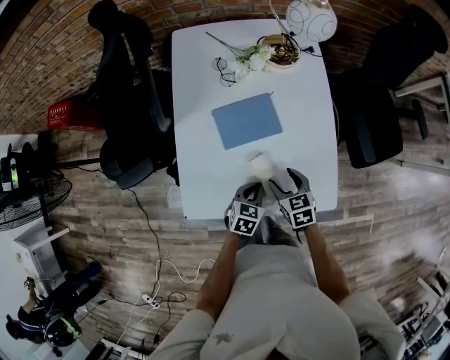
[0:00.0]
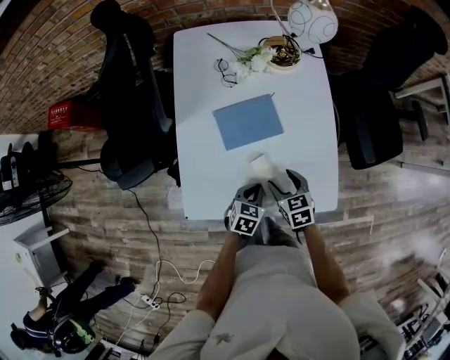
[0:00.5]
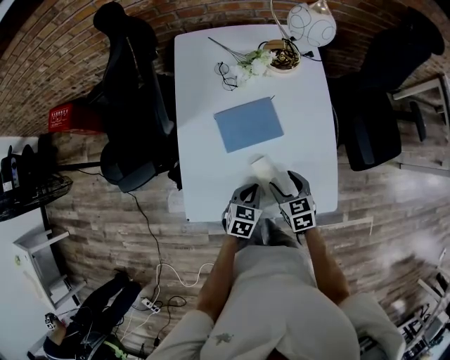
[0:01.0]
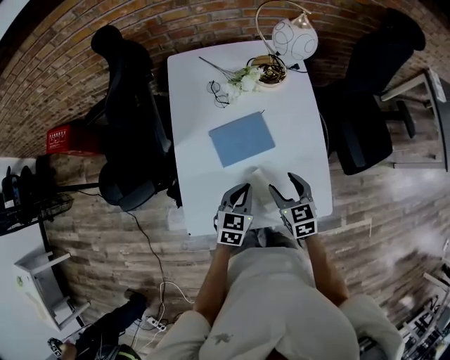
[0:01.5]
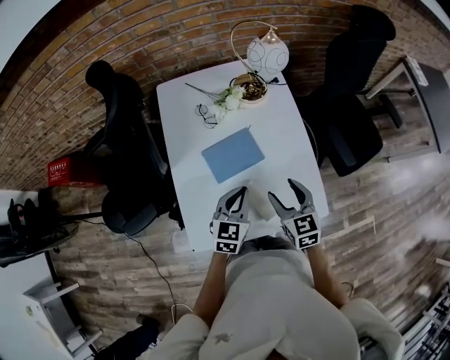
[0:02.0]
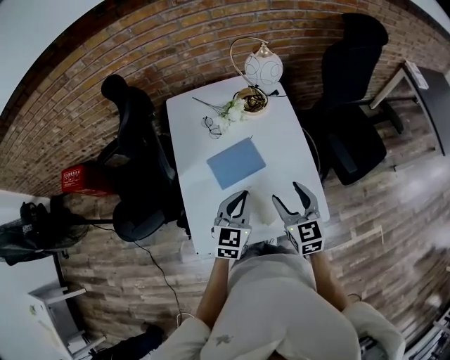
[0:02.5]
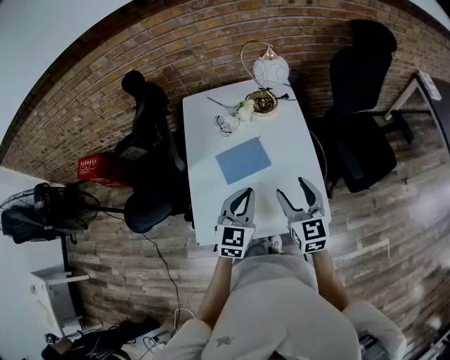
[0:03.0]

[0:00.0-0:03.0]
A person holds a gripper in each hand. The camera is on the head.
0:00.0 to 0:01.5: The grippers both shift upward by some 10 cm.
0:01.5 to 0:03.0: Both grippers move upward, about 15 cm. The right gripper swivels approximately 20 degrees. Meanwhile the left gripper swivels about 20 degrees.

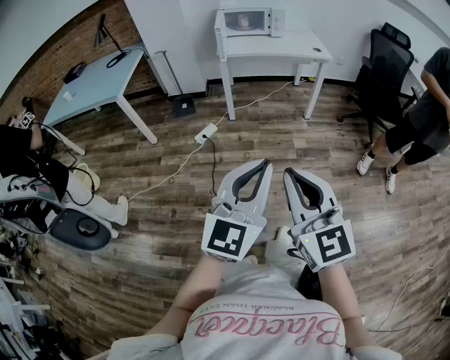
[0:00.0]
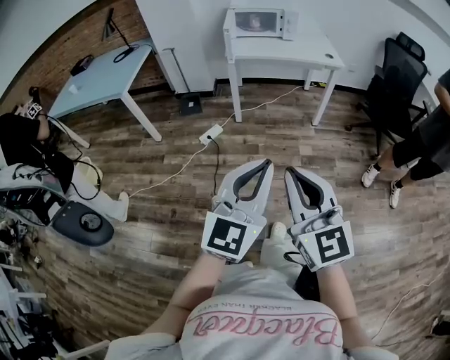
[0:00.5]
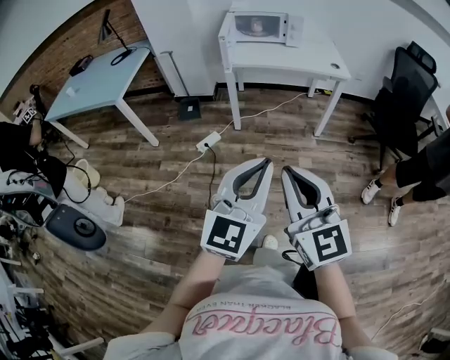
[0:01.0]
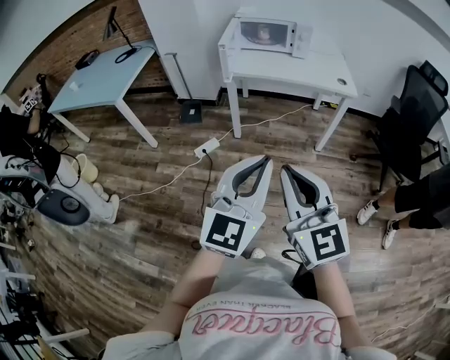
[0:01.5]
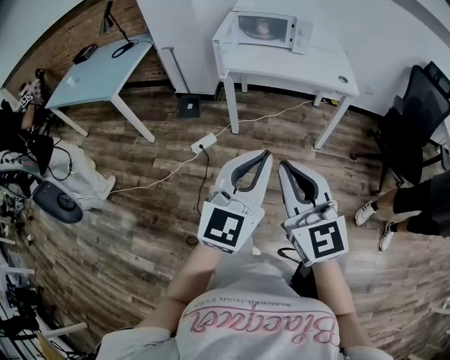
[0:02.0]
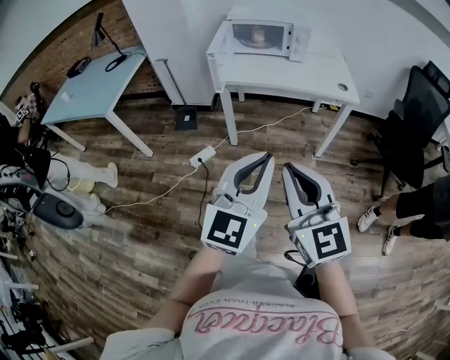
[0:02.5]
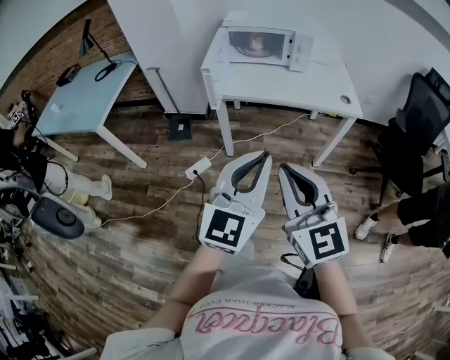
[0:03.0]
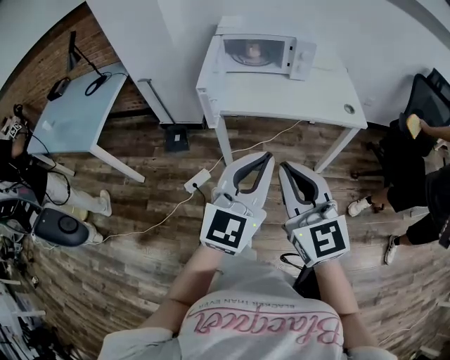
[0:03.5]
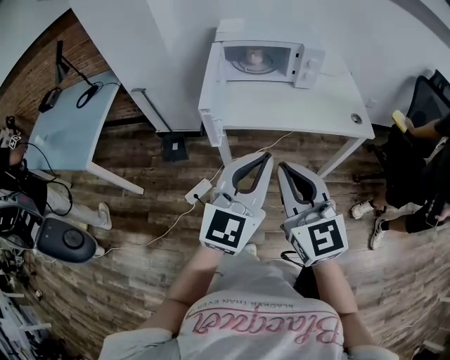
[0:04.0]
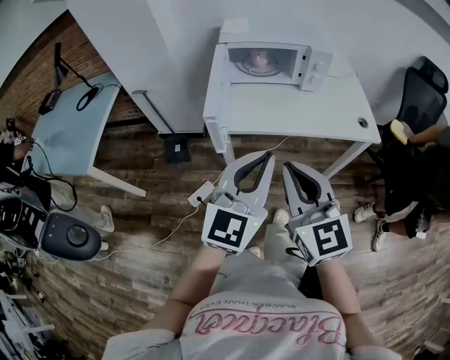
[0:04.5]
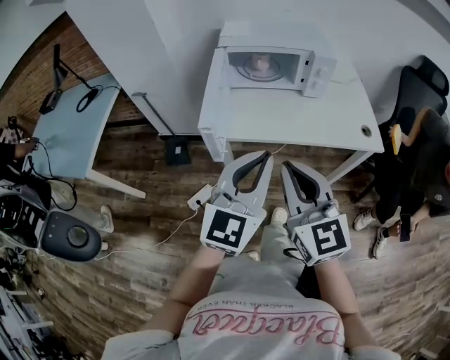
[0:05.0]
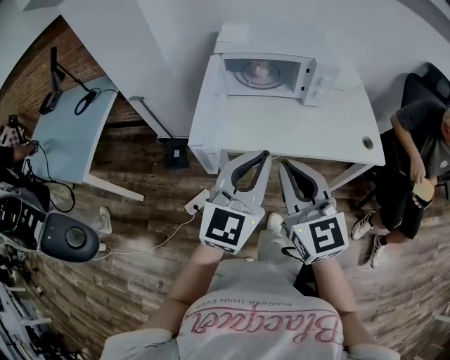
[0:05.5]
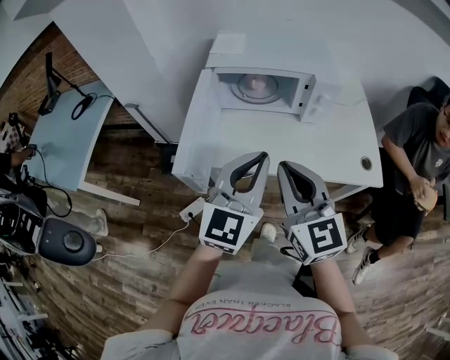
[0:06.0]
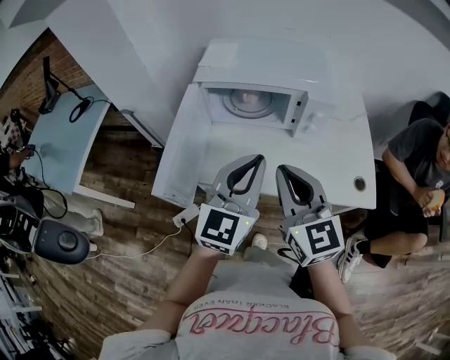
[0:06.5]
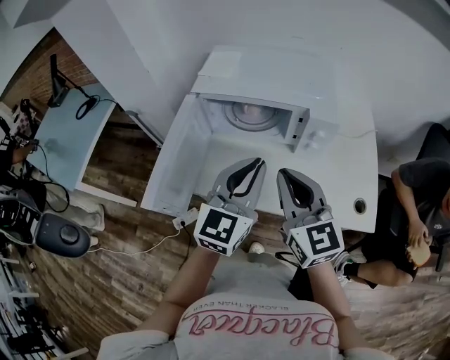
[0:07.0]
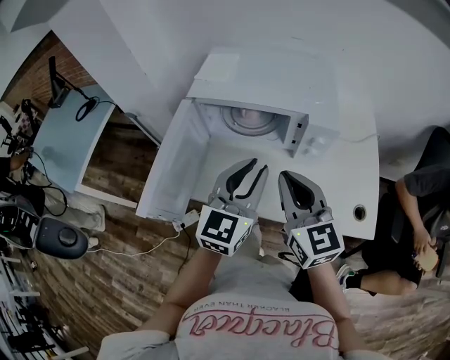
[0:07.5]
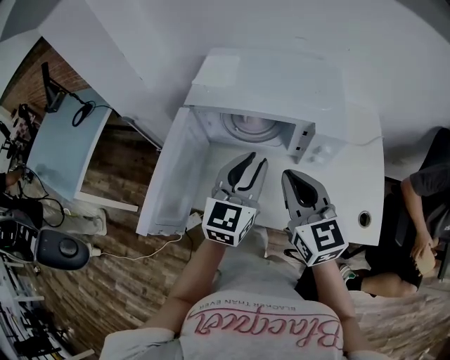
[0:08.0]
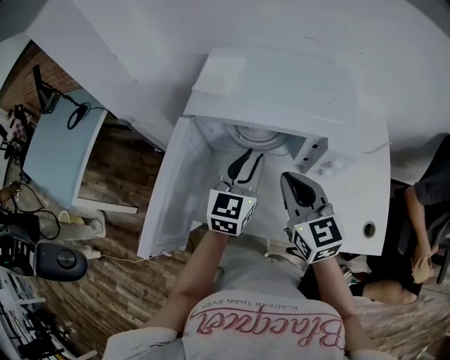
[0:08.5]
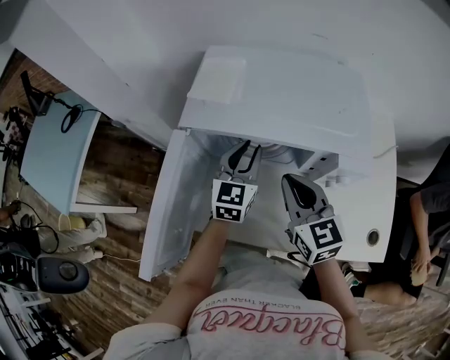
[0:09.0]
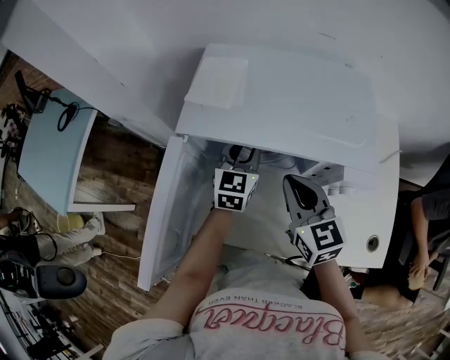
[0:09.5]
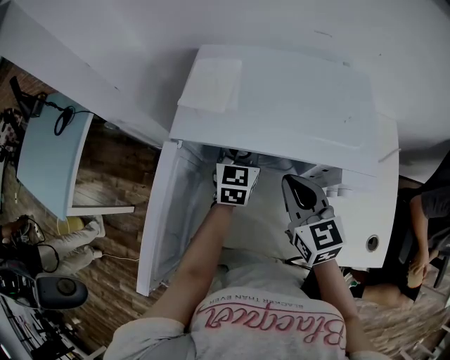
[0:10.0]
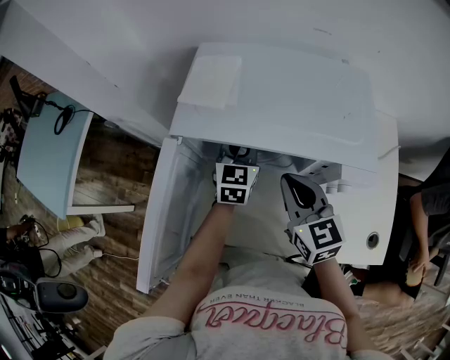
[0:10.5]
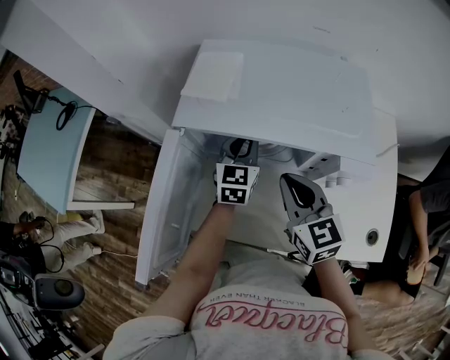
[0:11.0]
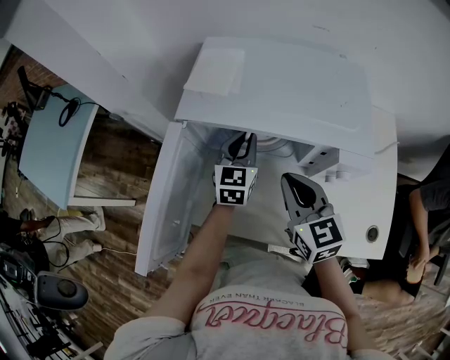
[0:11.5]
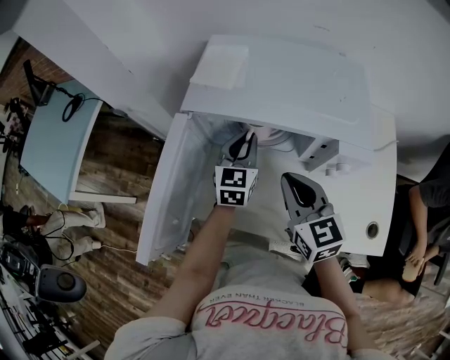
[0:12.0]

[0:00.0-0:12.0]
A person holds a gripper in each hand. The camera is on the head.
0:00.0 to 0:02.0: Both grippers travel together forward and to the right, some 30 cm.
0:02.0 to 0:04.0: Both grippers move forward, some 35 cm.
0:04.0 to 0:06.0: Both grippers move forward, some 20 cm.
0:06.0 to 0:08.0: The right gripper goes about 20 cm forward and to the right. The left gripper goes some 20 cm forward.
0:08.0 to 0:10.0: The left gripper moves forward and downward, approximately 25 cm. The right gripper shifts about 15 cm forward and downward.
0:10.0 to 0:12.0: Both grippers move backward, roughly 5 cm.

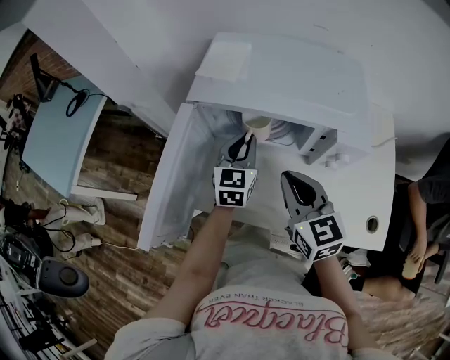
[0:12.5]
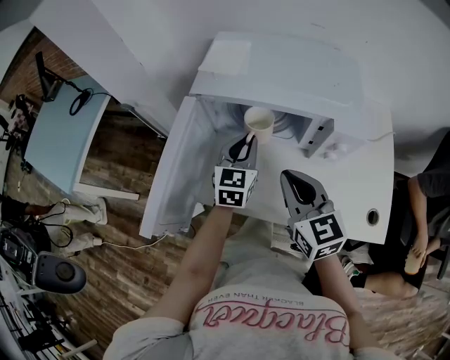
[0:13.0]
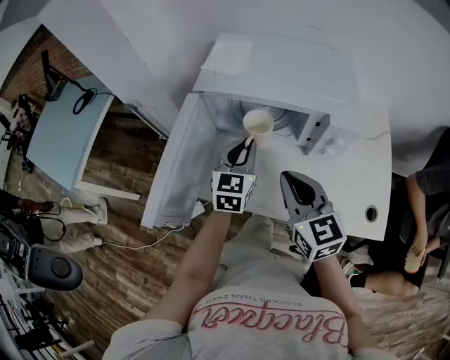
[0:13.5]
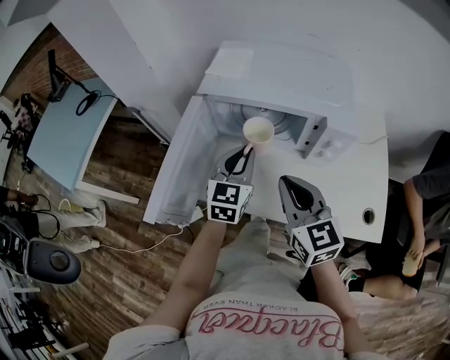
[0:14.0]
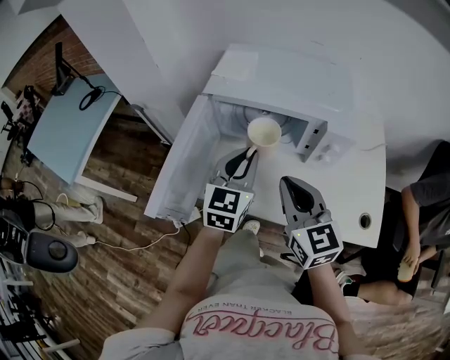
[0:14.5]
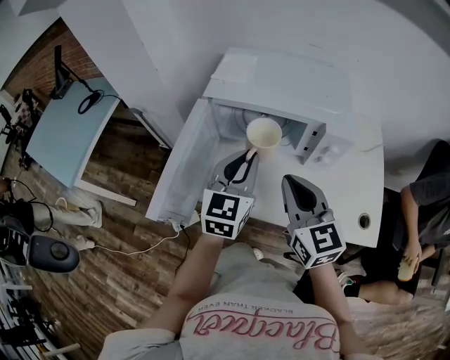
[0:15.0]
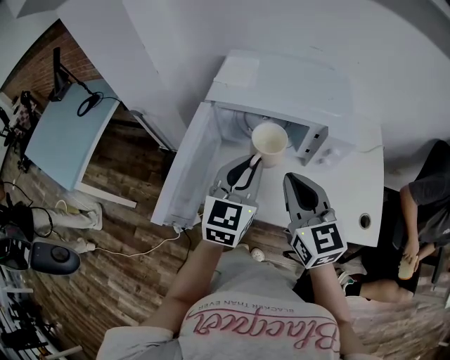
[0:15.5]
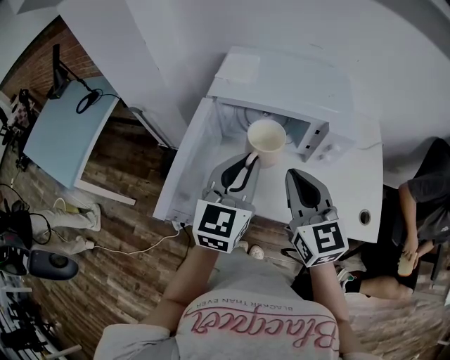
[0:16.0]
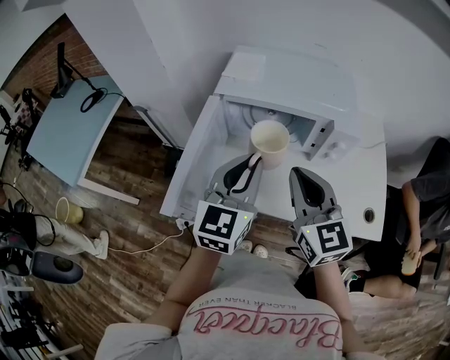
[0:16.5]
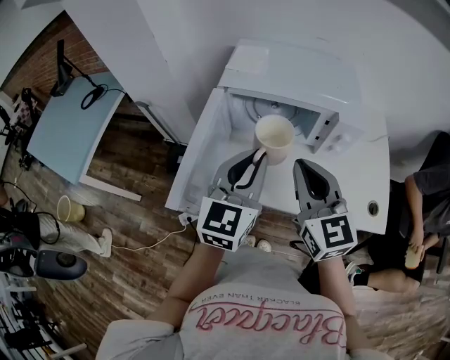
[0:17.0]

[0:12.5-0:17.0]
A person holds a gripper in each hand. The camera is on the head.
0:12.5 to 0:14.5: The right gripper shifts about 10 cm backward; the left gripper goes some 15 cm backward and upward.
0:14.5 to 0:17.0: The right gripper heads upward, covering about 5 cm; the left gripper heads upward and backward, covering about 10 cm.

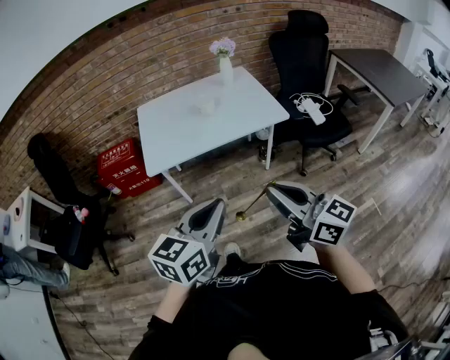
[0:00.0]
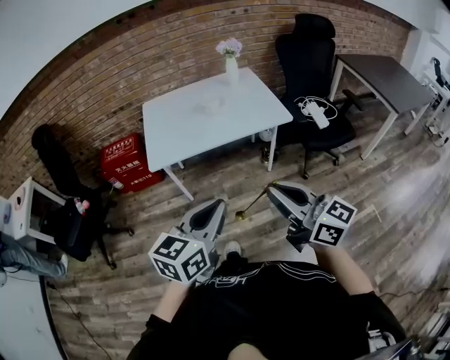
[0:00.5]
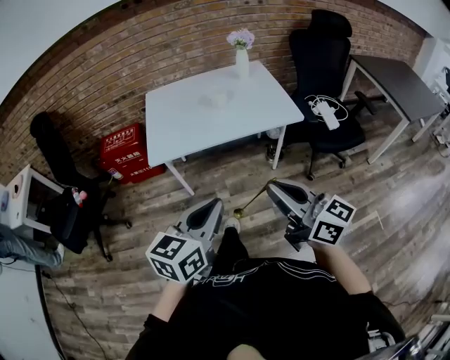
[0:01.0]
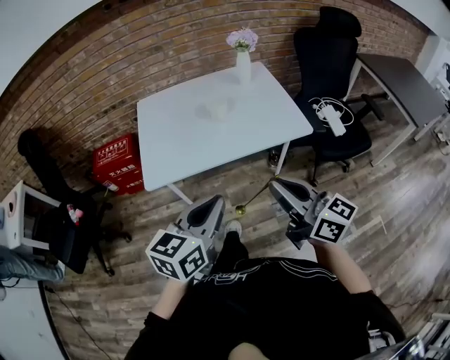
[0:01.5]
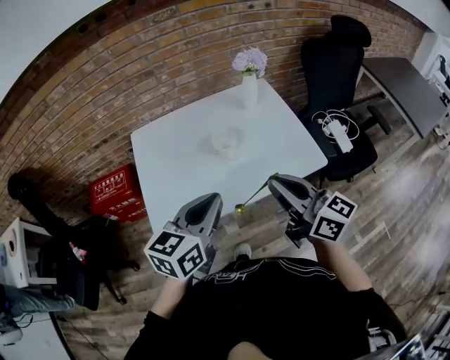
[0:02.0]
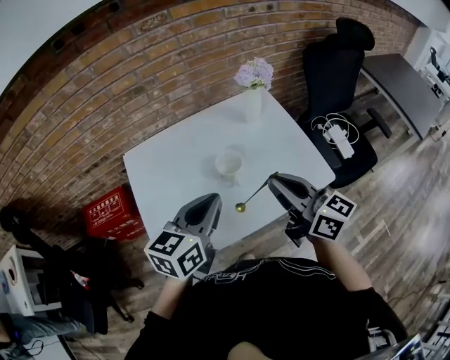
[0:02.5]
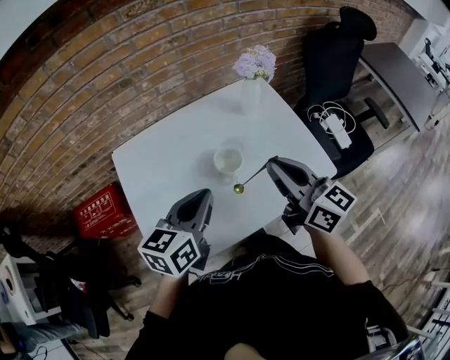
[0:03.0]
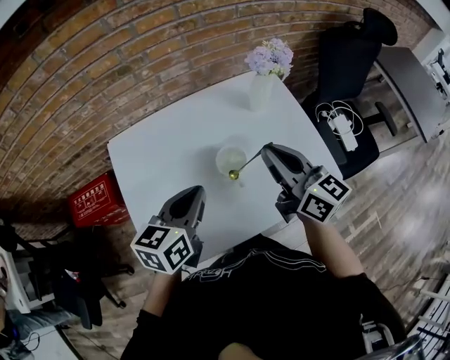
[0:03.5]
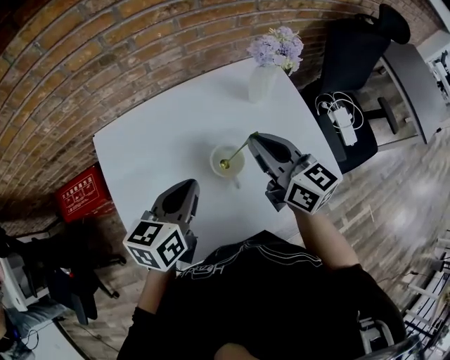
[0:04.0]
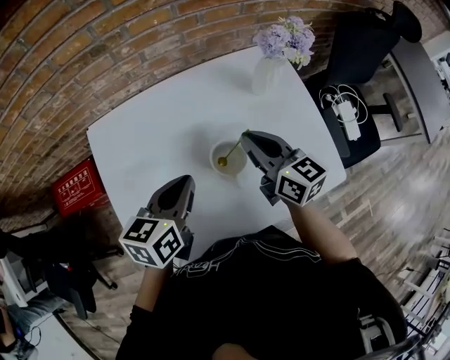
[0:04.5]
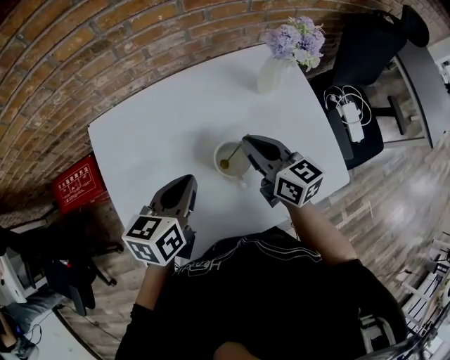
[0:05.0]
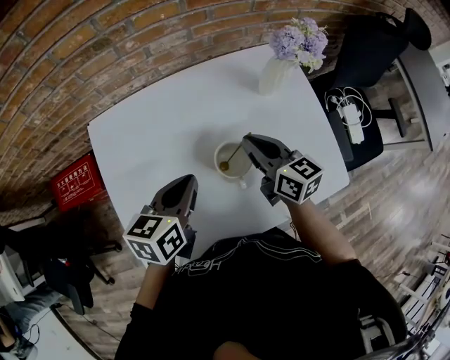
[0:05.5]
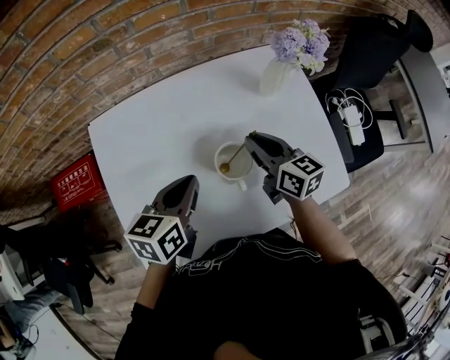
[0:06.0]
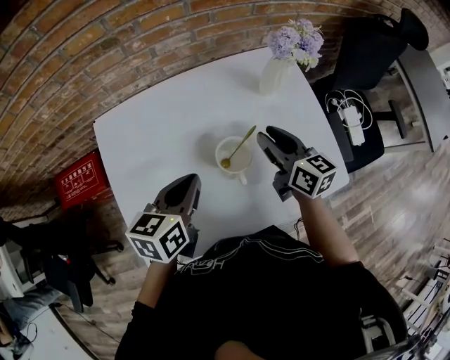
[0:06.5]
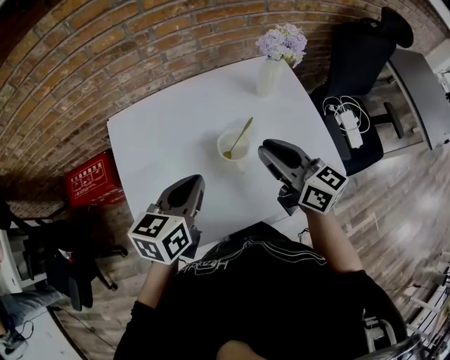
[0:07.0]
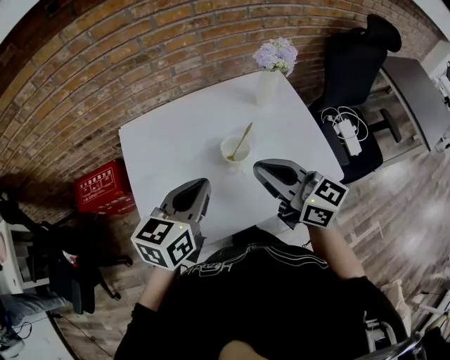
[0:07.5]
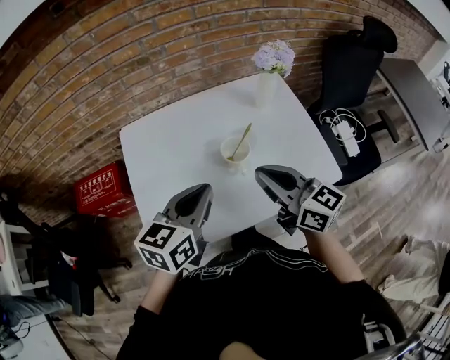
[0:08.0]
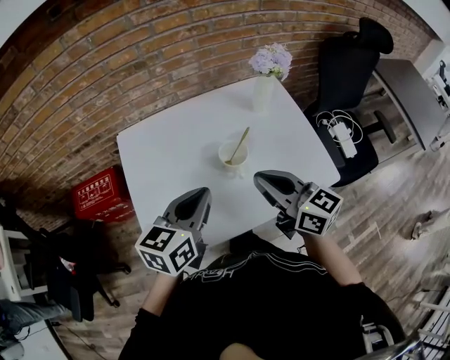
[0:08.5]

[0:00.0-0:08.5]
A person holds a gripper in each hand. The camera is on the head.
0:00.0 to 0:02.0: Both grippers travel together forward, about 40 cm.
0:02.0 to 0:04.0: The left gripper heads forward and downward, covering approximately 30 cm, while the right gripper shifts approximately 30 cm forward.
0:04.0 to 0:06.5: The right gripper heads downward, covering some 10 cm, and opens.
0:06.5 to 0:08.5: The left gripper heads backward and upward, covering roughly 15 cm. The right gripper is displaced backward and upward by about 20 cm, and closes its fingers.
